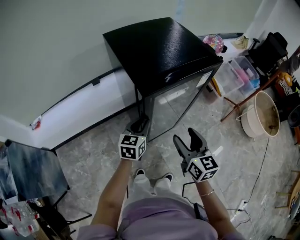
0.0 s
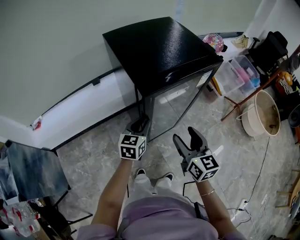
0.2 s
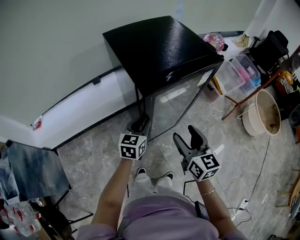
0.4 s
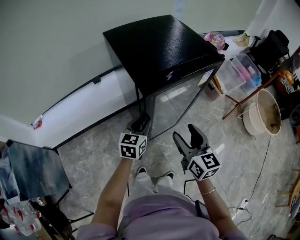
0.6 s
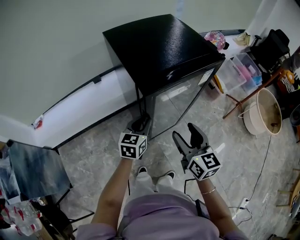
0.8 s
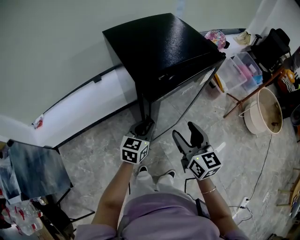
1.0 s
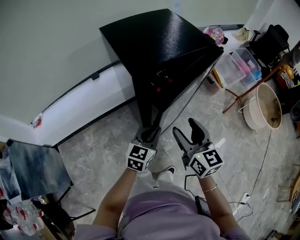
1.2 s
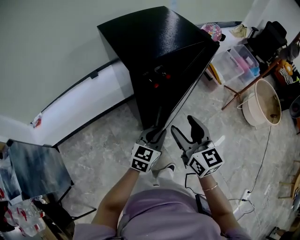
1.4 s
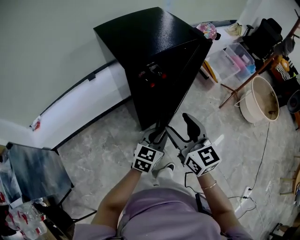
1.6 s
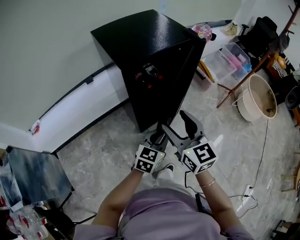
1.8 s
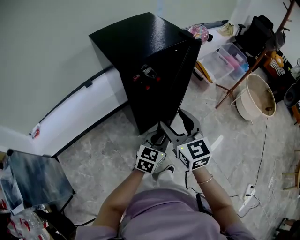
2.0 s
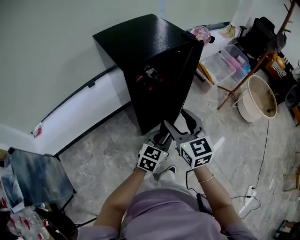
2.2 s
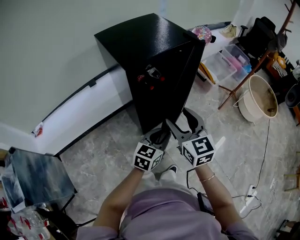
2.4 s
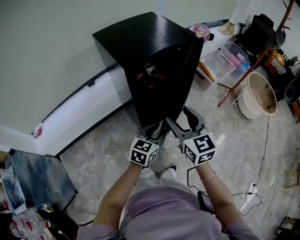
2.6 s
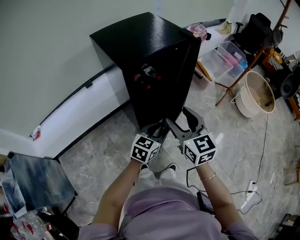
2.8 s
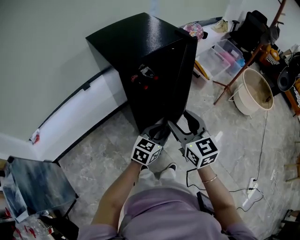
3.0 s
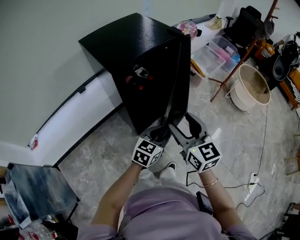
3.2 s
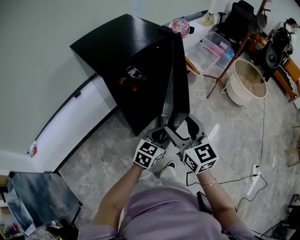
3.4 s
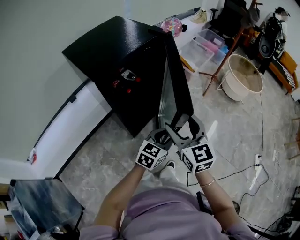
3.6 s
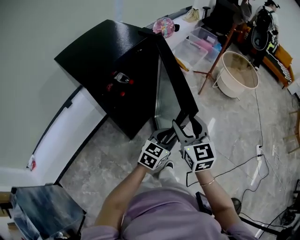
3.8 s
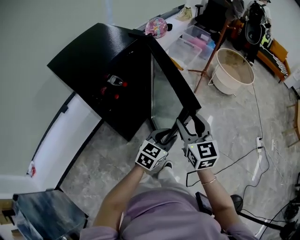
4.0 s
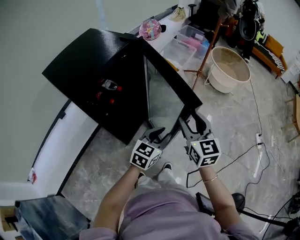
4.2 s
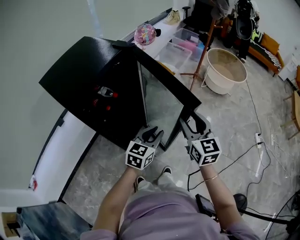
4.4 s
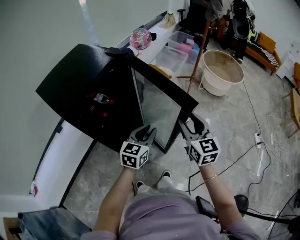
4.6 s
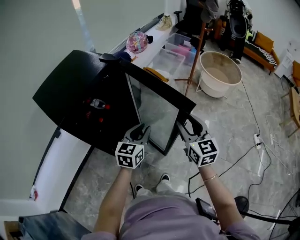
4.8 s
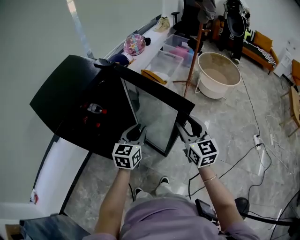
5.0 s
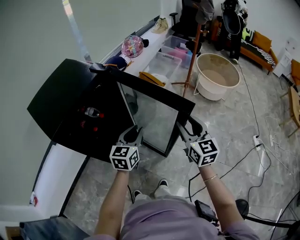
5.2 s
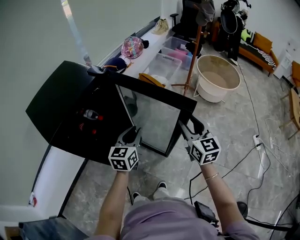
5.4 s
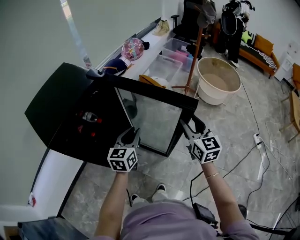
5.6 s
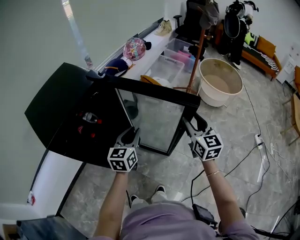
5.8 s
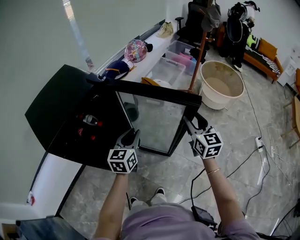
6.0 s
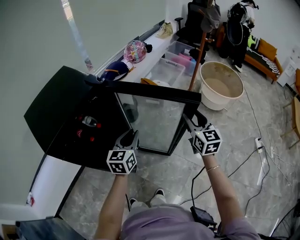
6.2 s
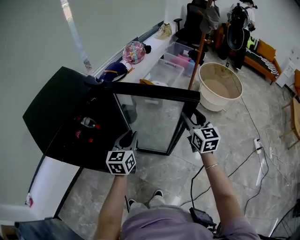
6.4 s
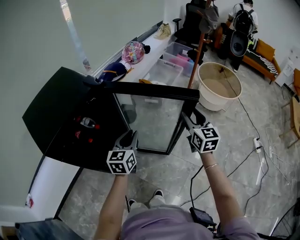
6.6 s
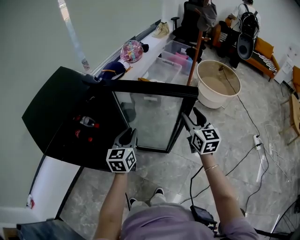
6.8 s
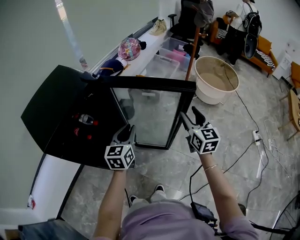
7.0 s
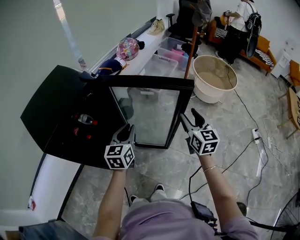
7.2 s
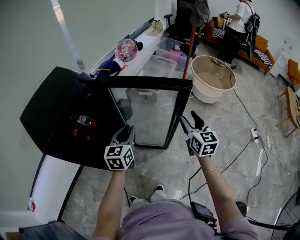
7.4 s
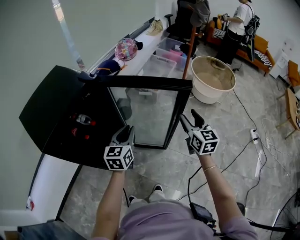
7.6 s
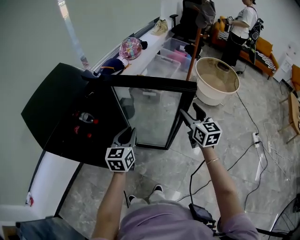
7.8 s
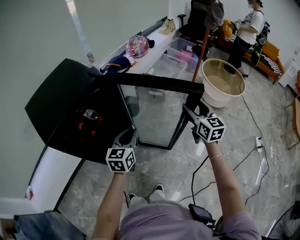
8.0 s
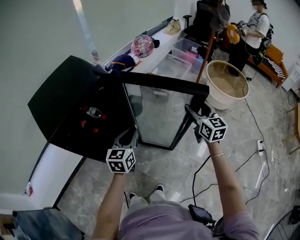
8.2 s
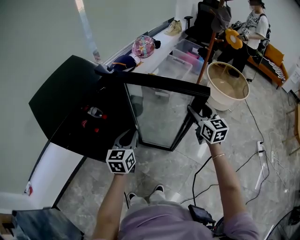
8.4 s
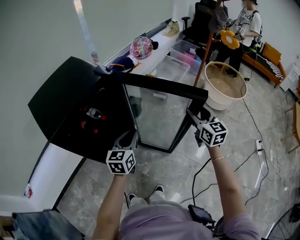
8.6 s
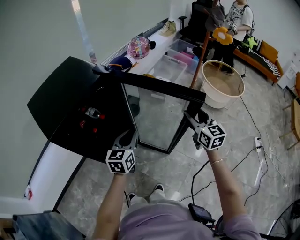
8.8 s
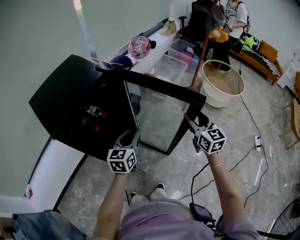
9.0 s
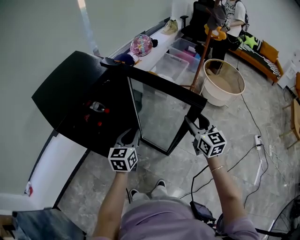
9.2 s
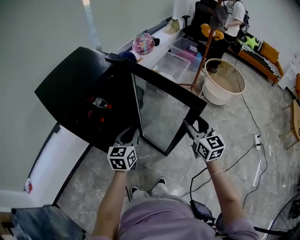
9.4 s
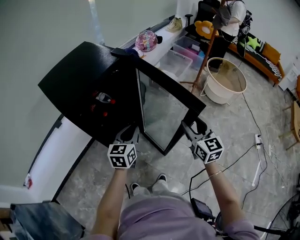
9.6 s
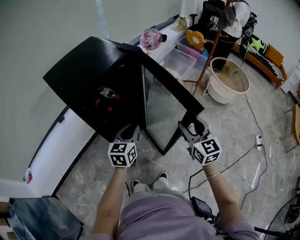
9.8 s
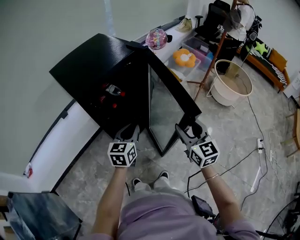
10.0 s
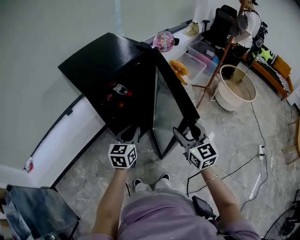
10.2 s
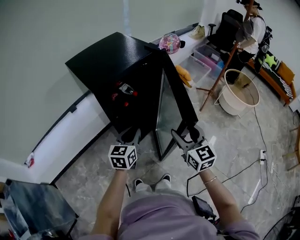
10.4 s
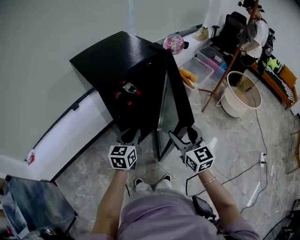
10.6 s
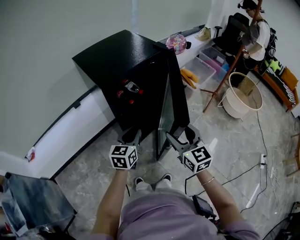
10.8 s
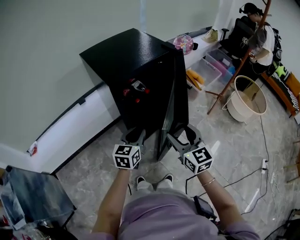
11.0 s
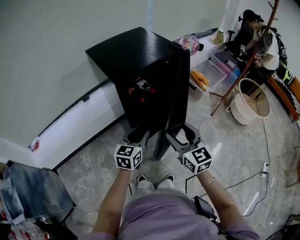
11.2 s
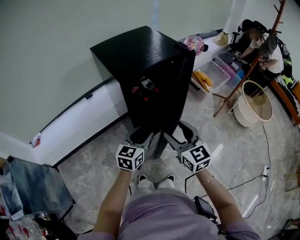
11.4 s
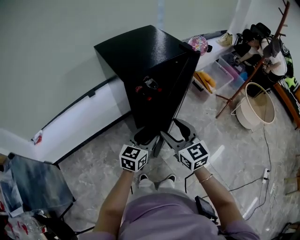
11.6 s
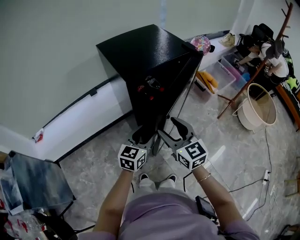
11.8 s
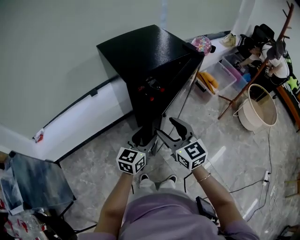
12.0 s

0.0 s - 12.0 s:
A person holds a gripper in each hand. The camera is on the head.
0.0 s - 1.6 s: The left gripper shifts about 15 cm backward and to the right, while the right gripper heads upward, covering some 5 cm.
1.6 s - 3.0 s: There are only small adjustments of the grippers.
3.0 s - 4.4 s: The right gripper moves to the right, roughly 20 cm, and swivels approximately 30 degrees. The left gripper shifts approximately 15 cm to the right and forward.
4.4 s - 6.0 s: The left gripper heads forward, covering roughly 15 cm, and swivels some 20 degrees. The right gripper shifts about 20 cm forward and to the right.
6.0 s - 7.6 s: There are only small adjustments of the grippers.
7.6 s - 9.0 s: The left gripper moves some 5 cm, while the right gripper travels forward and back again, about 5 cm each way.
9.0 s - 10.4 s: Both grippers move to the left and backward, some 25 cm.
10.4 s - 12.0 s: The left gripper shifts by some 5 cm, and opens up. Meanwhile the right gripper goes some 15 cm to the left, and rotates approximately 20 degrees.

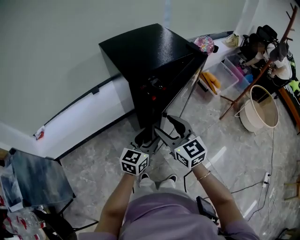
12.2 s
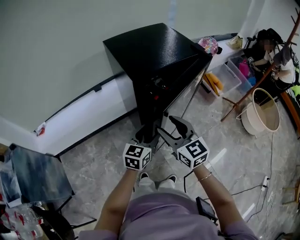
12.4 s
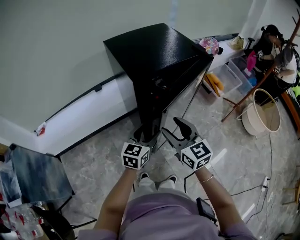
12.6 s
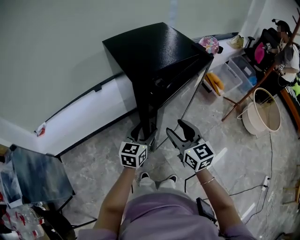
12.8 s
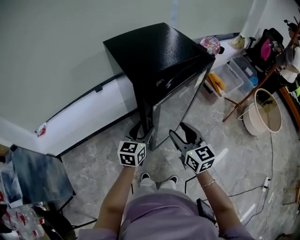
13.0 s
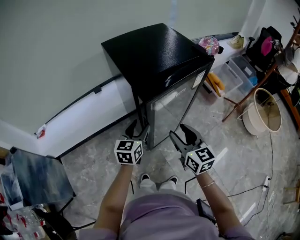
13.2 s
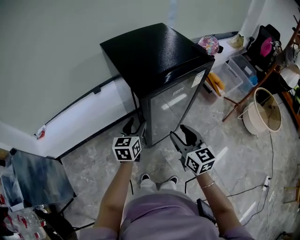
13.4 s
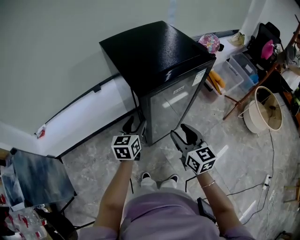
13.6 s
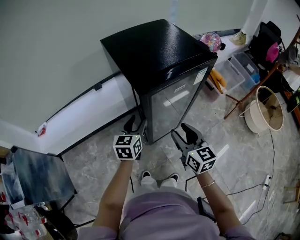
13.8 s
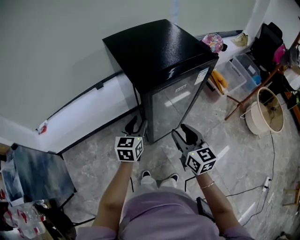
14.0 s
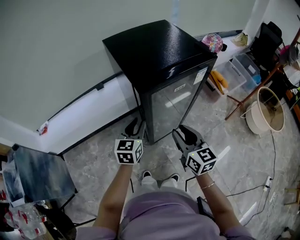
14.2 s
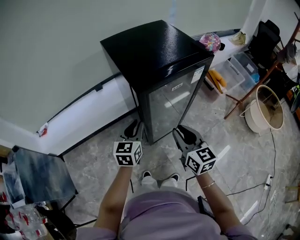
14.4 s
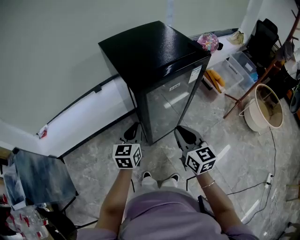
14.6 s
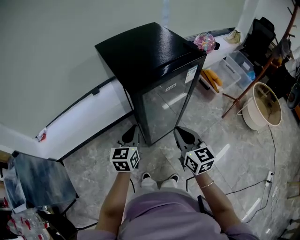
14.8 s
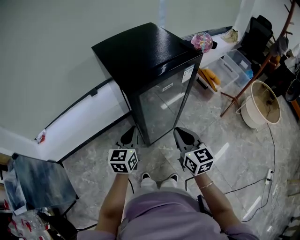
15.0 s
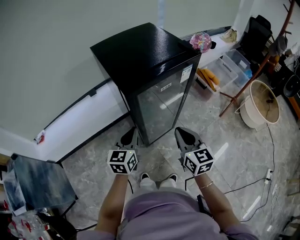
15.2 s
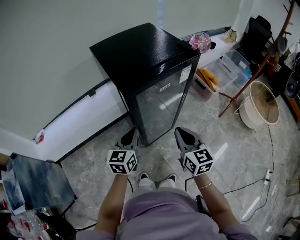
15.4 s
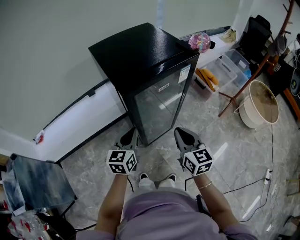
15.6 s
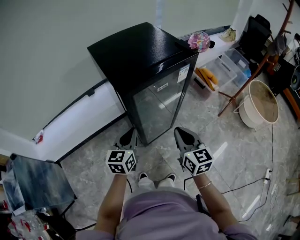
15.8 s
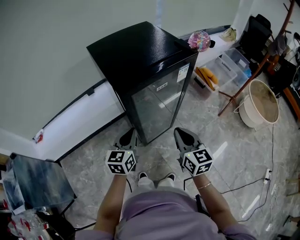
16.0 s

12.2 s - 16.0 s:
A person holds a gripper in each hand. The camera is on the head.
12.2 s - 13.4 s: The right gripper shifts about 5 cm to the right. Meanwhile the left gripper goes roughly 10 cm forward and to the left.
13.4 s - 14.8 s: The right gripper closes its fingers; the left gripper moves backward, some 5 cm, and closes up.
14.8 s - 16.0 s: The grippers stay close to where they were, moving slightly.

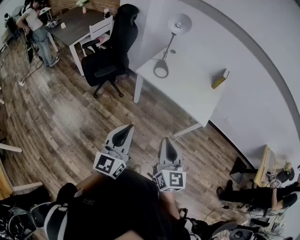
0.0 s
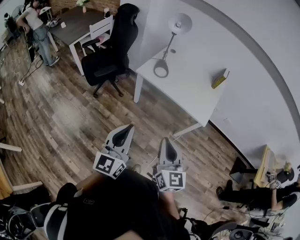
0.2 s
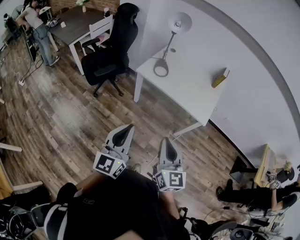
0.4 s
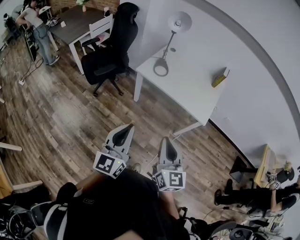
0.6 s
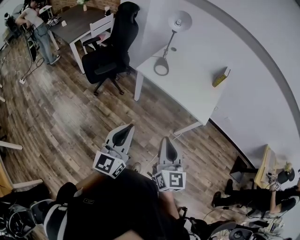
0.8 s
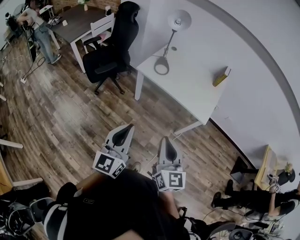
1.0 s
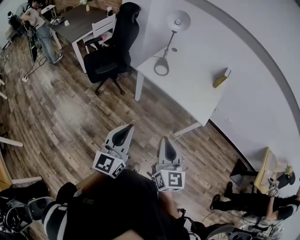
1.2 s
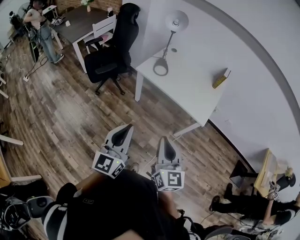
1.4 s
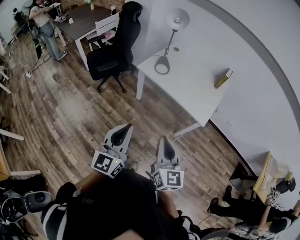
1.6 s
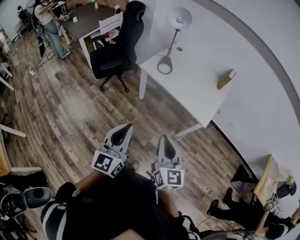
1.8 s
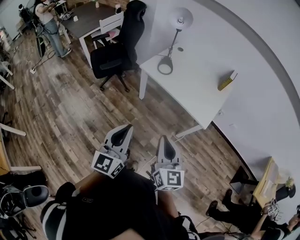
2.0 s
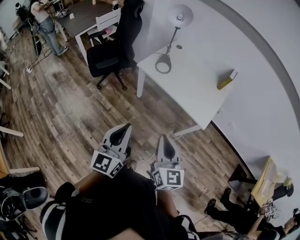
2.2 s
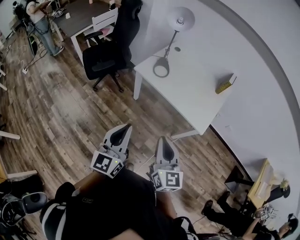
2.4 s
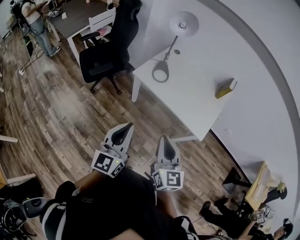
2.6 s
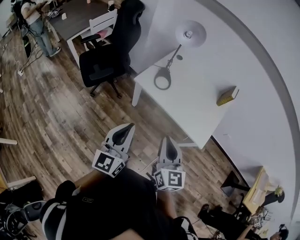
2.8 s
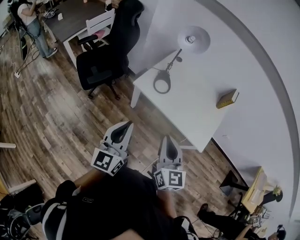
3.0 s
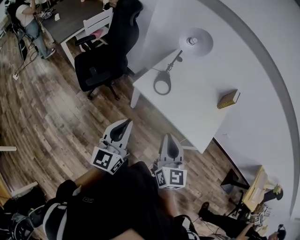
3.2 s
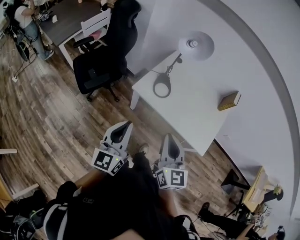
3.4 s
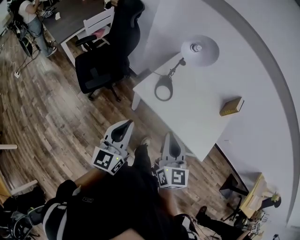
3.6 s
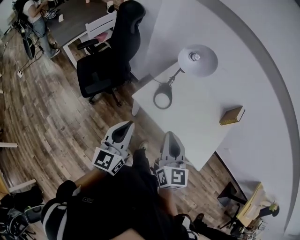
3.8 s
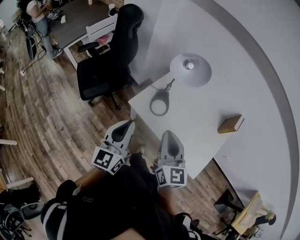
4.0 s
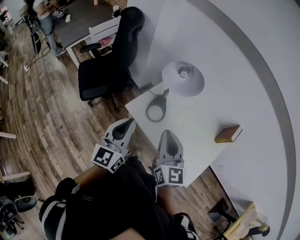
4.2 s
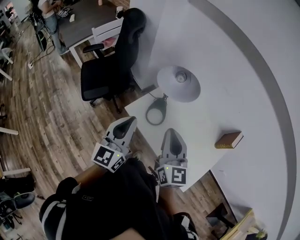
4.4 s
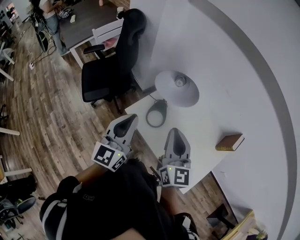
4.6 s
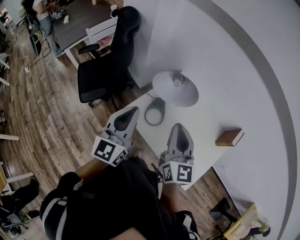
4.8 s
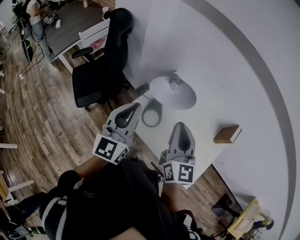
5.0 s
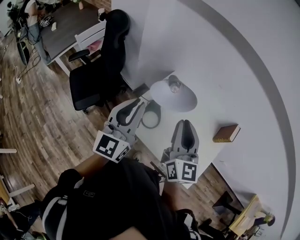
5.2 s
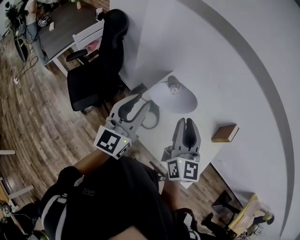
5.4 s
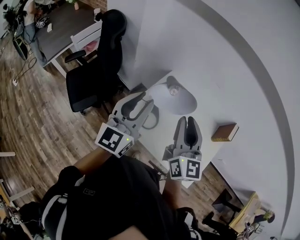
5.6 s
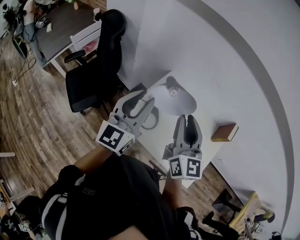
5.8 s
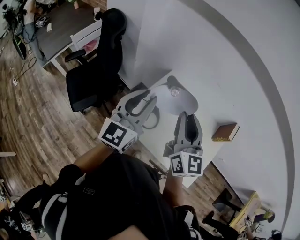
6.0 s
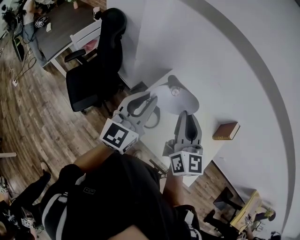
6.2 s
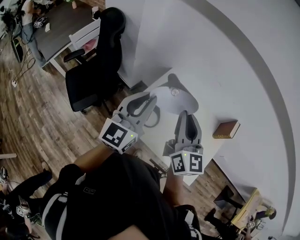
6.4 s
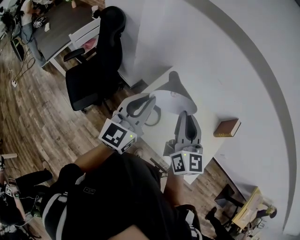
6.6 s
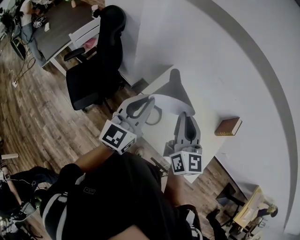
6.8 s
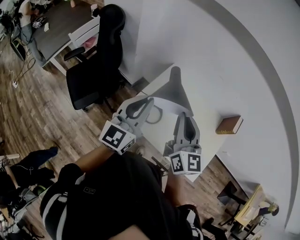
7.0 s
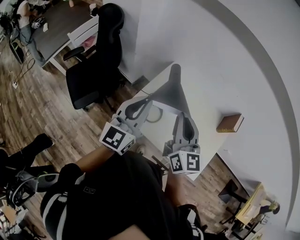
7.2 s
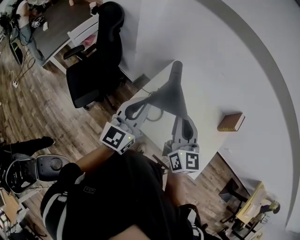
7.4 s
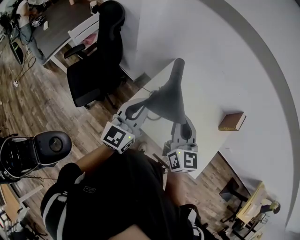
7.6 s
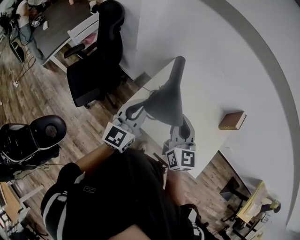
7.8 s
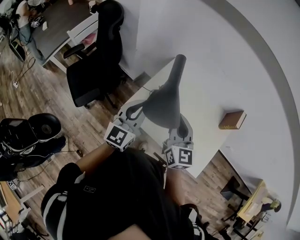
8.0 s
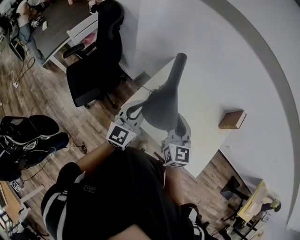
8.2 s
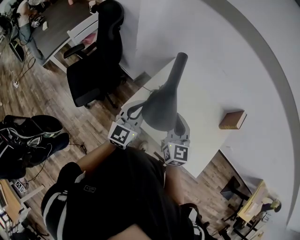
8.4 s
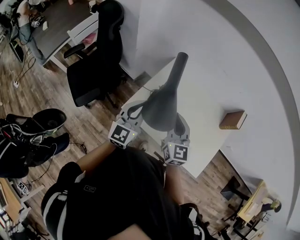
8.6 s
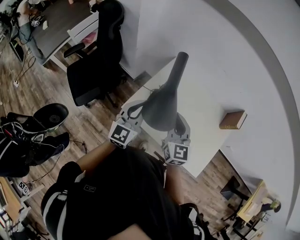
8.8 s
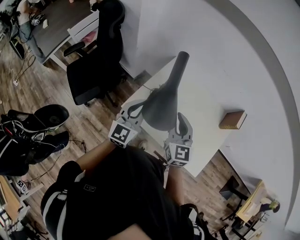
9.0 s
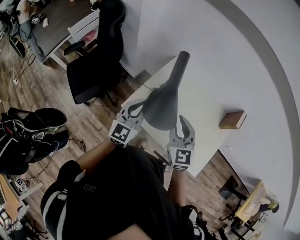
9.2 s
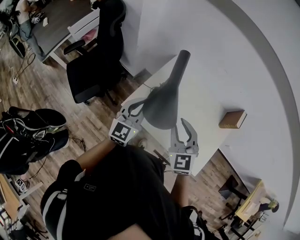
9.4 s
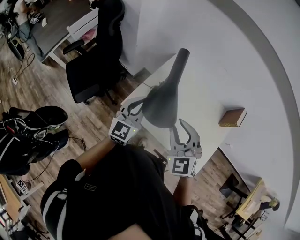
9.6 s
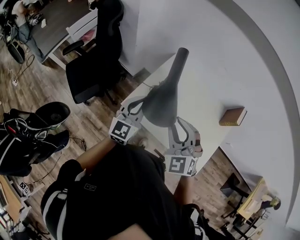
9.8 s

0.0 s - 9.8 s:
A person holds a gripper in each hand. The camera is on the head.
0.0 s - 1.4 s: The left gripper goes about 5 cm to the right.
1.4 s - 2.8 s: Both grippers travel together forward, approximately 20 cm.
2.8 s - 4.2 s: Both grippers move forward, approximately 30 cm.
4.2 s - 5.6 s: Both grippers travel together forward and upward, approximately 15 cm. The left gripper opens its fingers.
5.6 s - 7.0 s: There are only small adjustments of the grippers.
7.0 s - 8.4 s: The two grippers go approximately 10 cm downward.
8.4 s - 9.8 s: The right gripper goes some 5 cm backward, rolls counterclockwise, seen from behind, by approximately 40 degrees, and opens.
